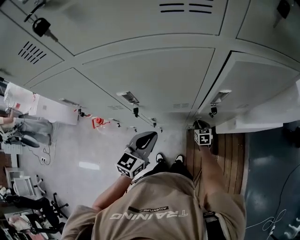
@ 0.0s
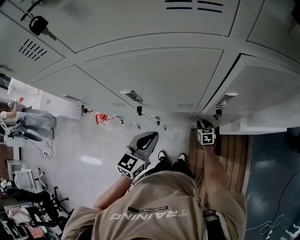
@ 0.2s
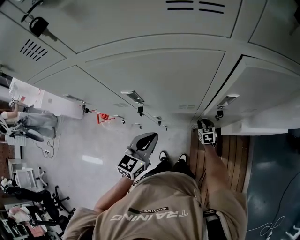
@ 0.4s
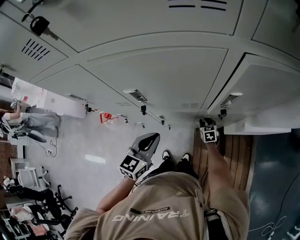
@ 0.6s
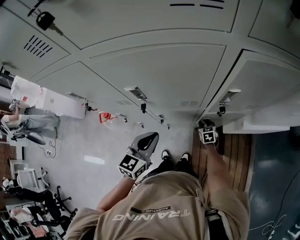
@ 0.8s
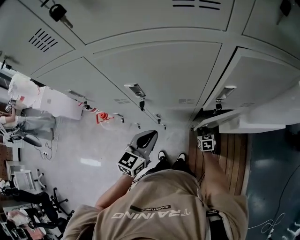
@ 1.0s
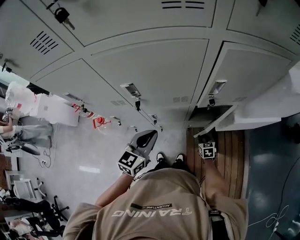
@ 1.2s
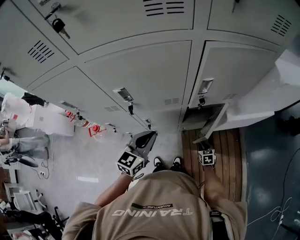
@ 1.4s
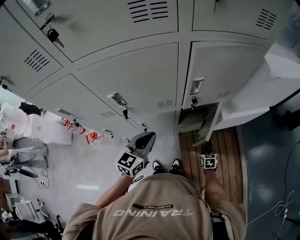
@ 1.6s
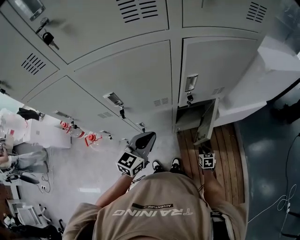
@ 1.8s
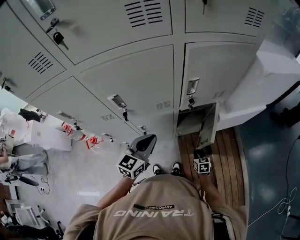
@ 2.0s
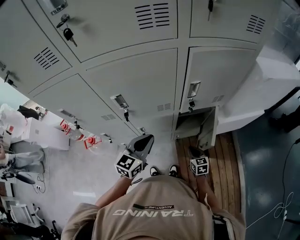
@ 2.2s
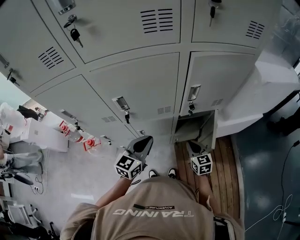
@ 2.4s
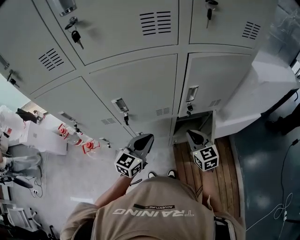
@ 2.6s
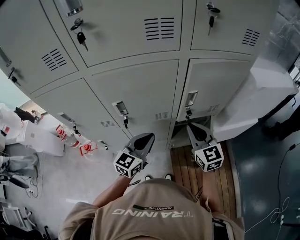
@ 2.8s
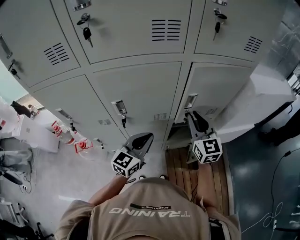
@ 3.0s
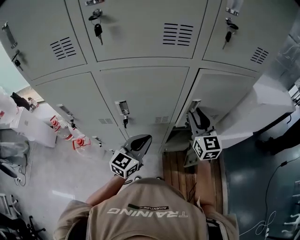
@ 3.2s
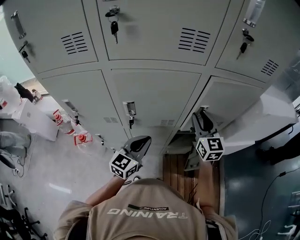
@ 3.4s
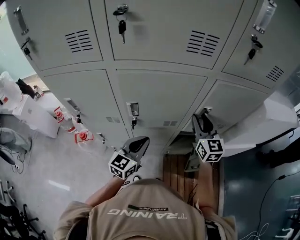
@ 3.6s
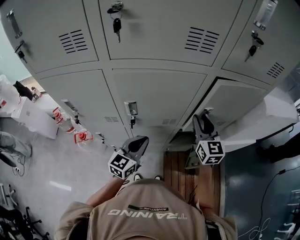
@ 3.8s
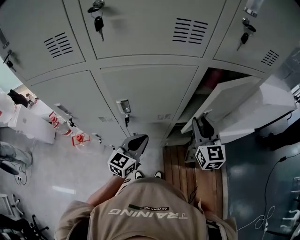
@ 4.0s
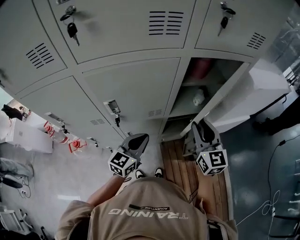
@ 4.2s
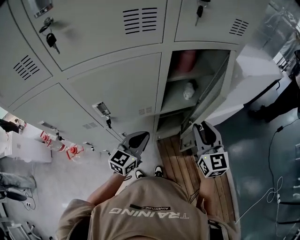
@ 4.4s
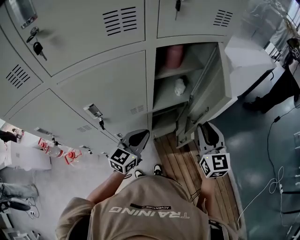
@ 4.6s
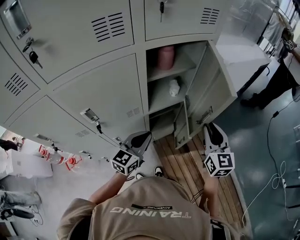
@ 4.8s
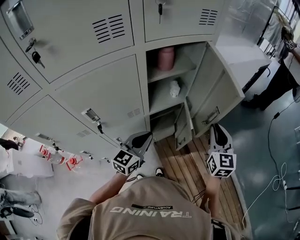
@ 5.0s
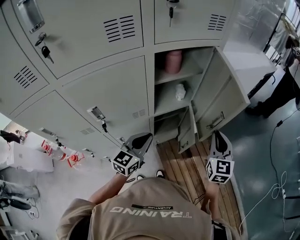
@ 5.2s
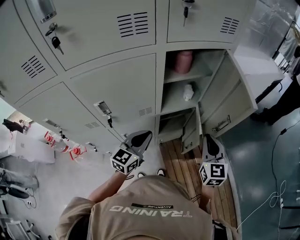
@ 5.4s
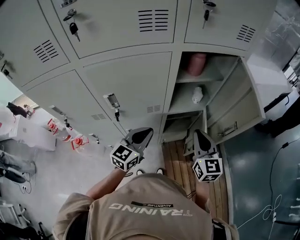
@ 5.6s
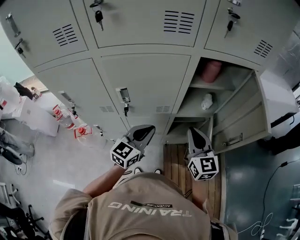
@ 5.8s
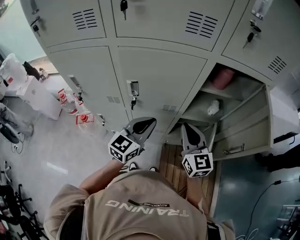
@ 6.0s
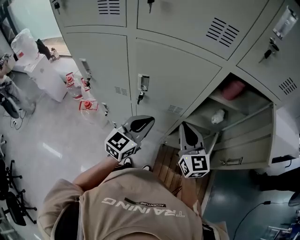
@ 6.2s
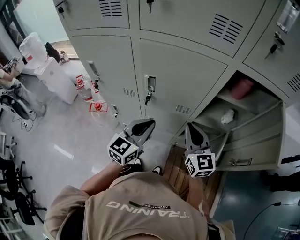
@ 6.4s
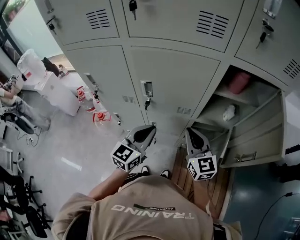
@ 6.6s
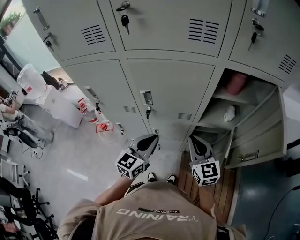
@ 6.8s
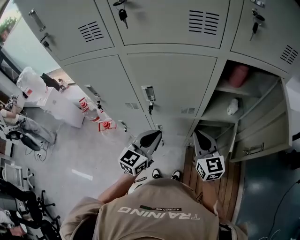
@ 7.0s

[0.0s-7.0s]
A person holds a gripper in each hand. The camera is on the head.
0.0s to 1.4s: The right gripper moves backward and to the right, about 20 cm.
1.4s to 2.8s: The left gripper goes approximately 5 cm upward. The right gripper shifts approximately 40 cm upward, and points its fingers some 40 degrees further upward.
2.8s to 4.2s: The right gripper moves some 10 cm forward and comes back, and opens up.
4.2s to 5.6s: The right gripper travels to the right and back again, some 20 cm each way, and closes.
5.6s to 7.0s: The left gripper moves roughly 10 cm, while the right gripper ends up roughly 15 cm from where it was, and turns by some 20 degrees.

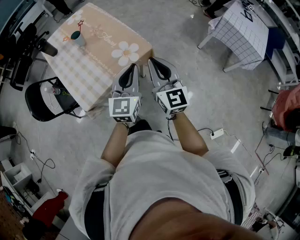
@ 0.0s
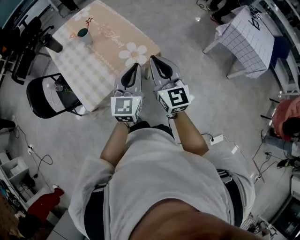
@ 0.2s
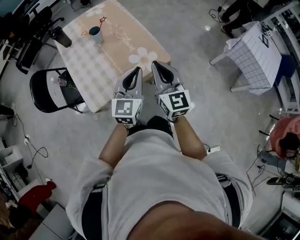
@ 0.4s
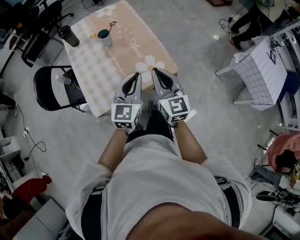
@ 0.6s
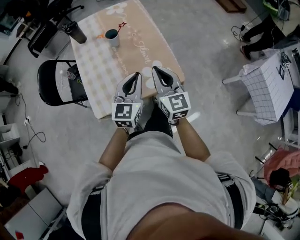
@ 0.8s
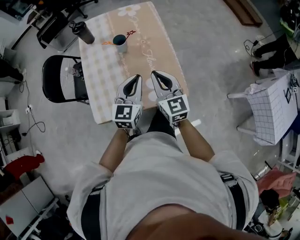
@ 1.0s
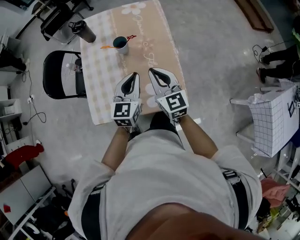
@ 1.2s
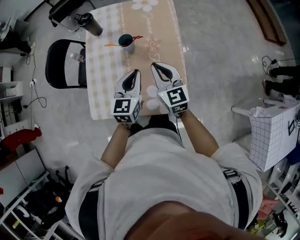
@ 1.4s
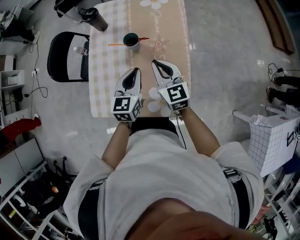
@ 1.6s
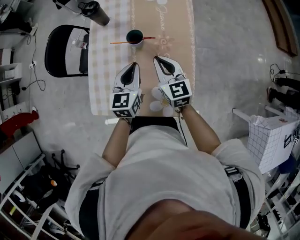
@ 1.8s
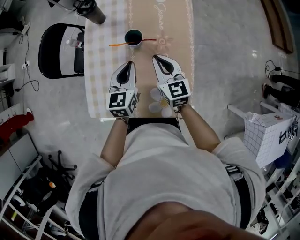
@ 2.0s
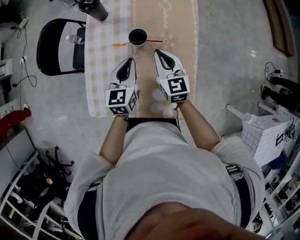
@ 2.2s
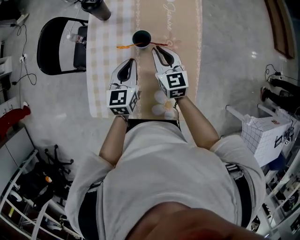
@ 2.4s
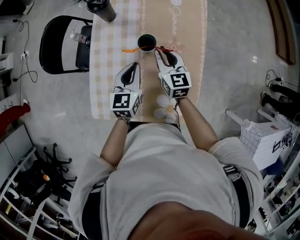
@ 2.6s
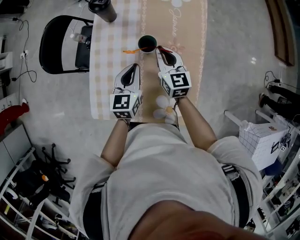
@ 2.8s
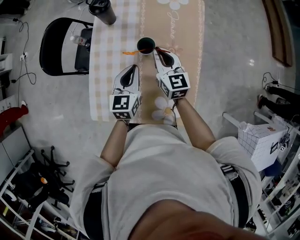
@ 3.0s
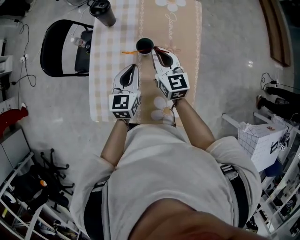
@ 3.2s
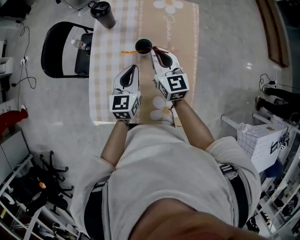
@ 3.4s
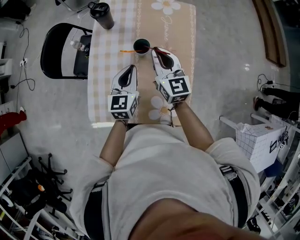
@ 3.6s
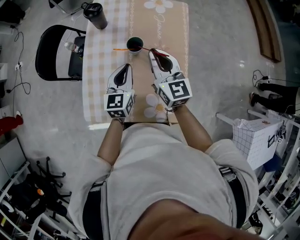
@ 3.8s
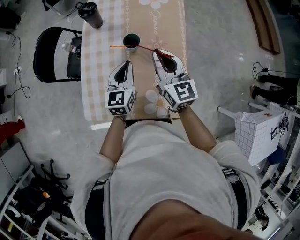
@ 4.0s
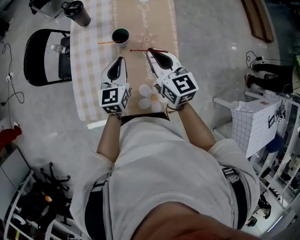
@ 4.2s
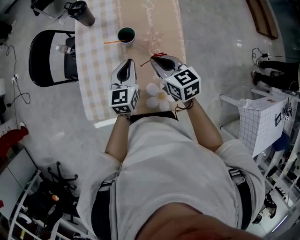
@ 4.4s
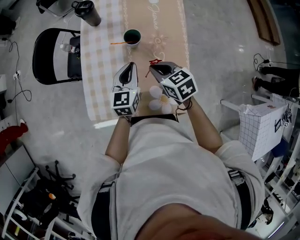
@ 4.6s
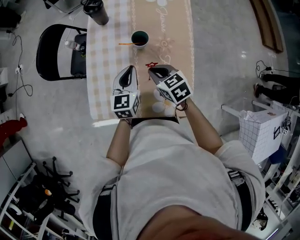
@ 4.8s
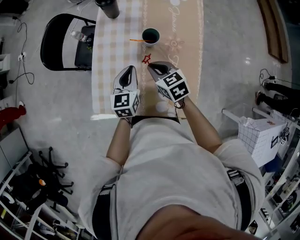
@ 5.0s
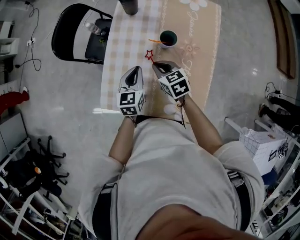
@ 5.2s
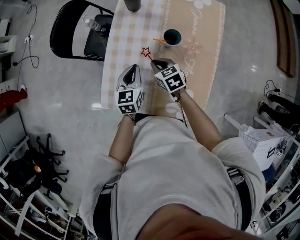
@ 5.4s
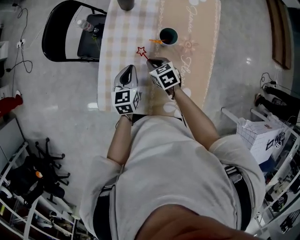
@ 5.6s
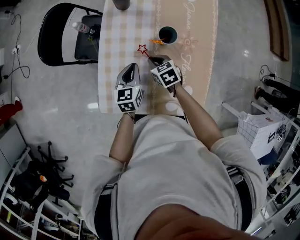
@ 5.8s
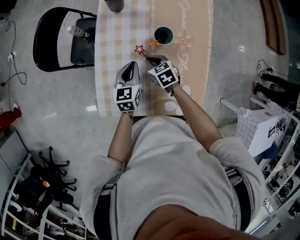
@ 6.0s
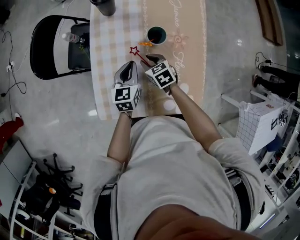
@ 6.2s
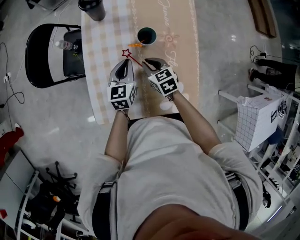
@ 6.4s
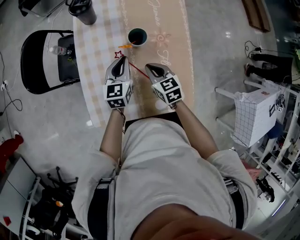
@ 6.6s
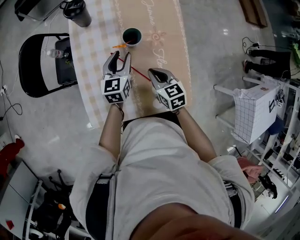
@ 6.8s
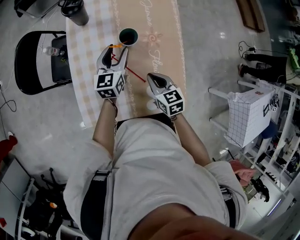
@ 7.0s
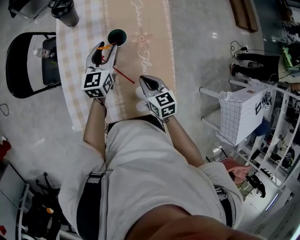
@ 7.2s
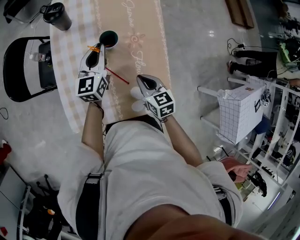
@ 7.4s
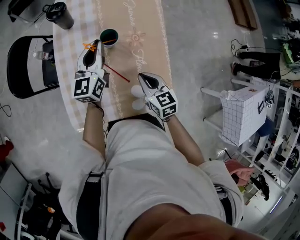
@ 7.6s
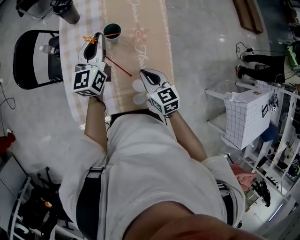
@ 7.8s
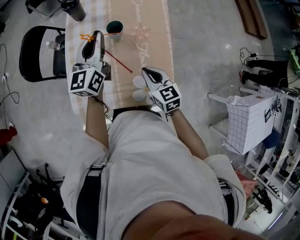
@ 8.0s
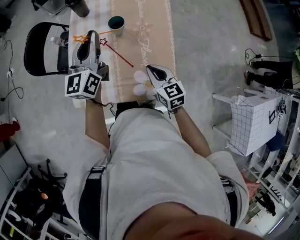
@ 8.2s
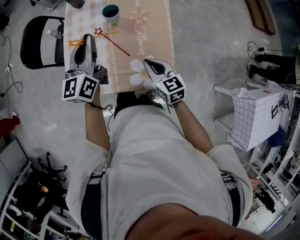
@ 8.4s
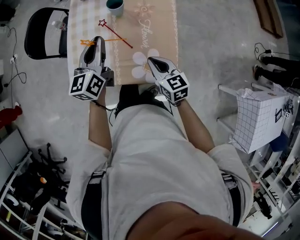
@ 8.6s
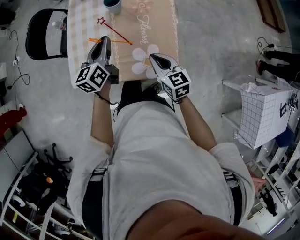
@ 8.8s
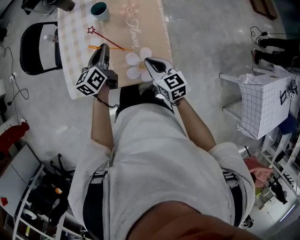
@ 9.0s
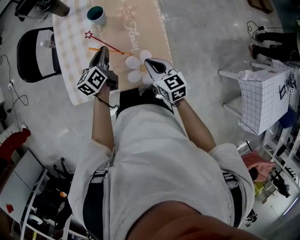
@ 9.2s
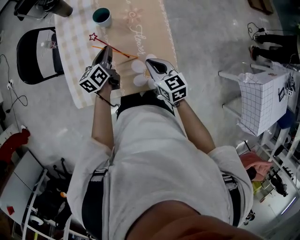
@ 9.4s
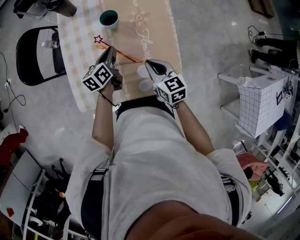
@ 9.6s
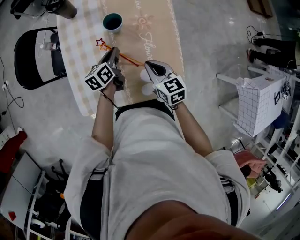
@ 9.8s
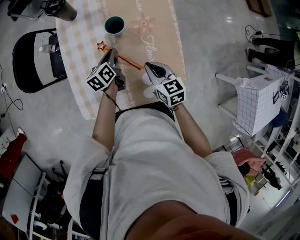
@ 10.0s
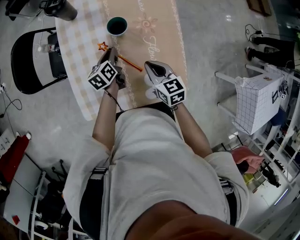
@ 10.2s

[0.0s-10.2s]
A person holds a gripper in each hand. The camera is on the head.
0.0s to 1.4s: The right gripper moves roughly 40 cm, and turns by approximately 40 degrees. The left gripper shifts by some 35 cm, and turns by some 40 degrees.
1.4s to 3.0s: The right gripper is displaced forward by roughly 15 cm. Meanwhile the left gripper travels forward, to the left and downward by about 15 cm.
3.0s to 4.4s: The left gripper shifts by about 5 cm, while the right gripper heads backward, covering some 10 cm.
4.4s to 5.8s: The left gripper goes roughly 15 cm to the left and downward, while the right gripper shifts roughly 25 cm downward, to the left and forward, and changes its angle by approximately 30 degrees.
5.8s to 7.2s: The left gripper heads to the right, forward and upward, covering about 15 cm, swivels about 20 degrees, and opens. The right gripper heads to the right, backward and upward, covering roughly 15 cm, rotates roughly 30 degrees, and opens, then closes again.
7.2s to 8.8s: The right gripper is displaced backward and to the right by roughly 15 cm; the left gripper heads backward, covering approximately 20 cm, and closes.
8.8s to 10.2s: The left gripper travels downward and forward by approximately 20 cm, and rotates approximately 30 degrees; the right gripper travels forward and to the left by approximately 15 cm.

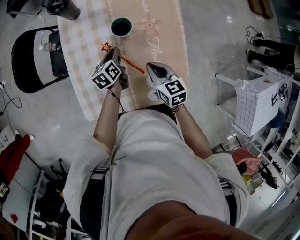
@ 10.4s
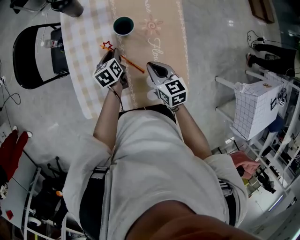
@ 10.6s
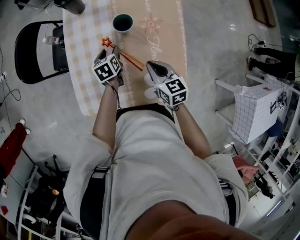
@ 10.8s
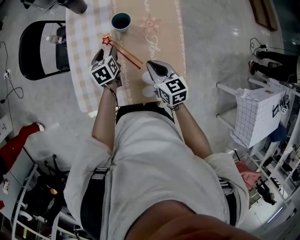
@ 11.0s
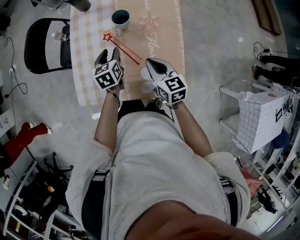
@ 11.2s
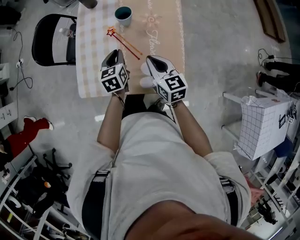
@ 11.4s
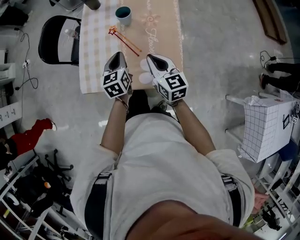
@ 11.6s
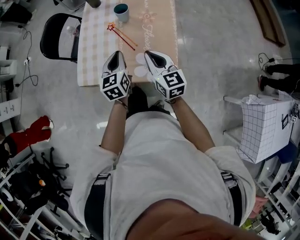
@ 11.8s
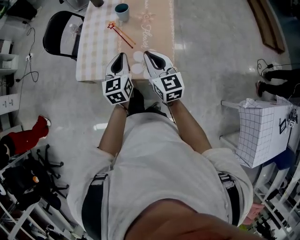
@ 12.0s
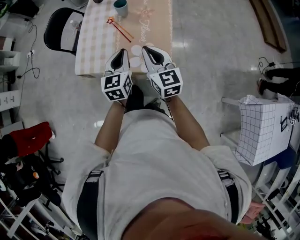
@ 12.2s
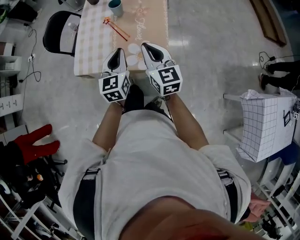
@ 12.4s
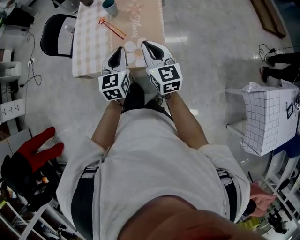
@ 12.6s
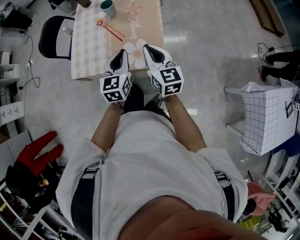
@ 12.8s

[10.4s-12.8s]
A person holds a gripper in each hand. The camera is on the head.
10.4s to 11.6s: Both grippers travel together backward and upward, about 20 cm. The right gripper turns by about 20 degrees; the left gripper changes its angle by about 30 degrees, and opens, then closes once more.
11.6s to 12.8s: The two grippers go about 20 cm backward, to the right and upward.

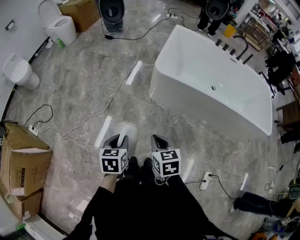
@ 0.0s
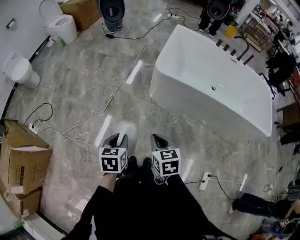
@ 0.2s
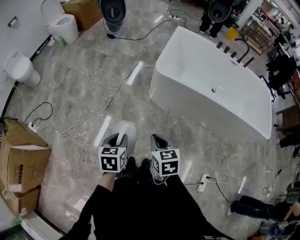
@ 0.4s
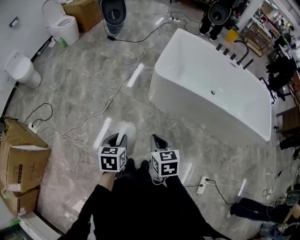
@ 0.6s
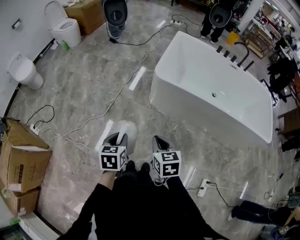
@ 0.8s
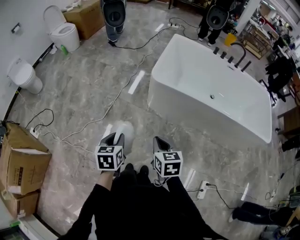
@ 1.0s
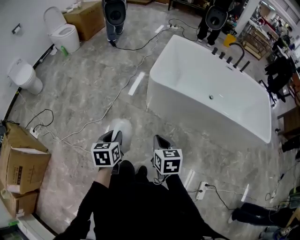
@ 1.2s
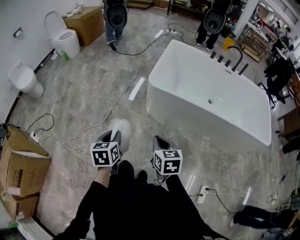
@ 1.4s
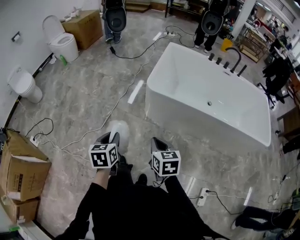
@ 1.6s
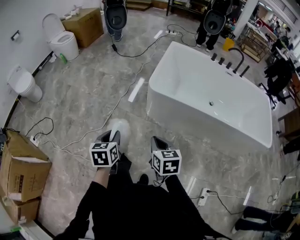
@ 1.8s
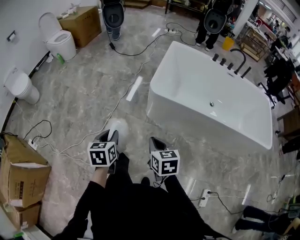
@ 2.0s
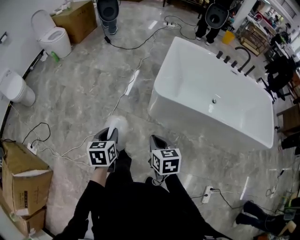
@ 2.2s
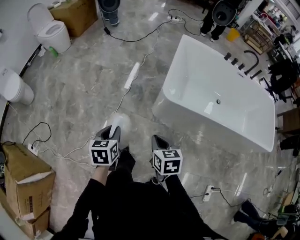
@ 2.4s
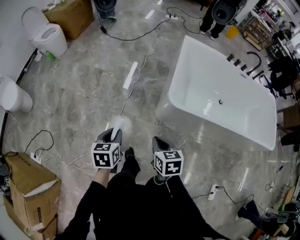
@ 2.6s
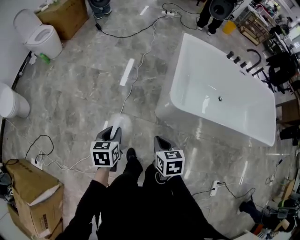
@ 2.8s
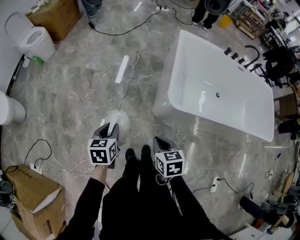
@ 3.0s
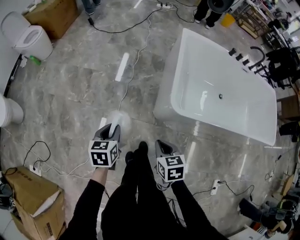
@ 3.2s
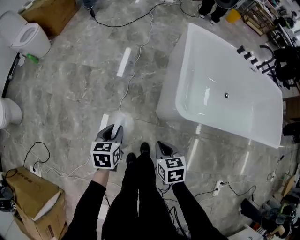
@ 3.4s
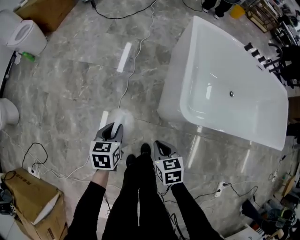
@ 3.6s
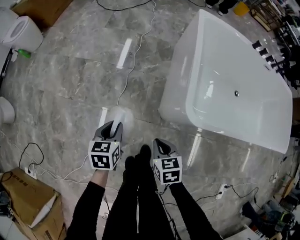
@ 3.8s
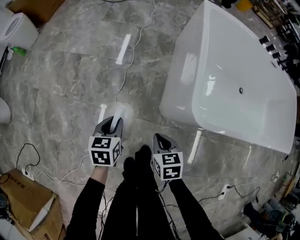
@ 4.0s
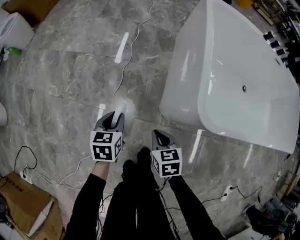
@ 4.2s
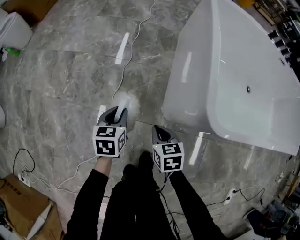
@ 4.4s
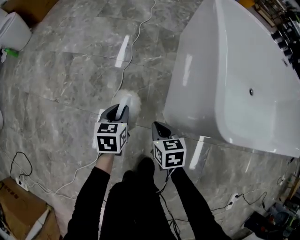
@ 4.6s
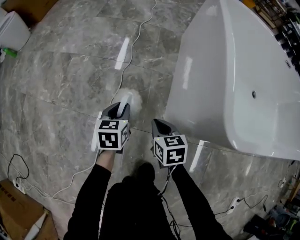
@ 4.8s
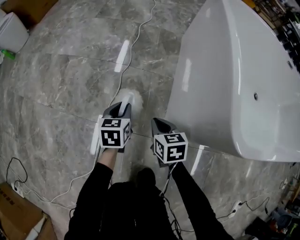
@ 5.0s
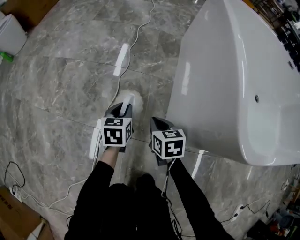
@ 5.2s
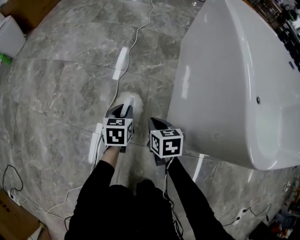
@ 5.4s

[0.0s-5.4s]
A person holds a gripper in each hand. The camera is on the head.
0.0s to 1.4s: The left gripper changes place by approximately 5 cm, while the right gripper is displaced to the right by approximately 5 cm.
1.4s to 2.8s: The grippers both shift forward and to the left by some 35 cm.
2.8s to 4.0s: The two grippers go approximately 30 cm downward and forward.
4.0s to 5.4s: Both grippers move downward and forward, approximately 30 cm.
